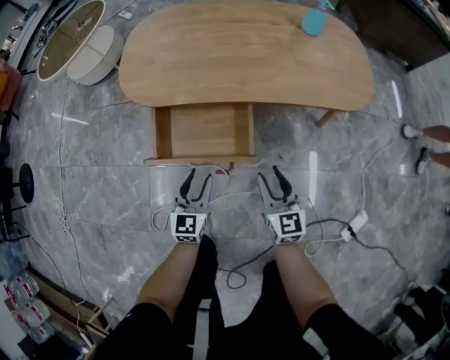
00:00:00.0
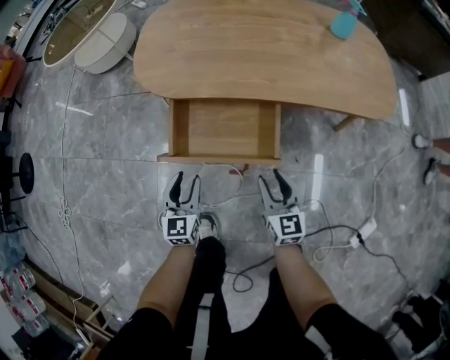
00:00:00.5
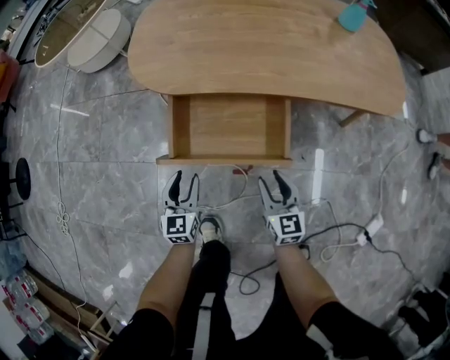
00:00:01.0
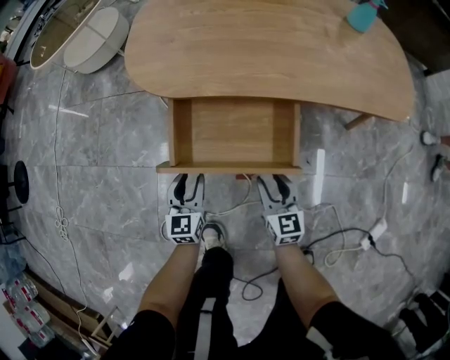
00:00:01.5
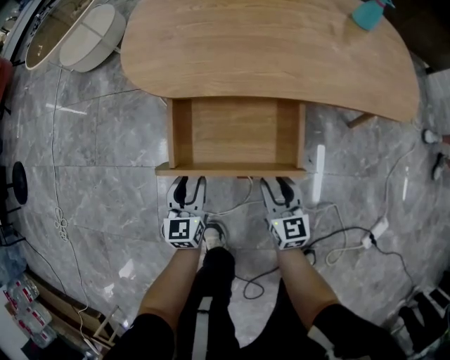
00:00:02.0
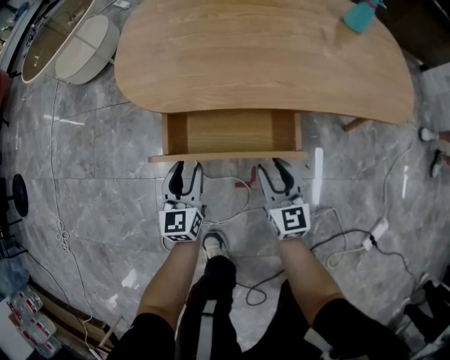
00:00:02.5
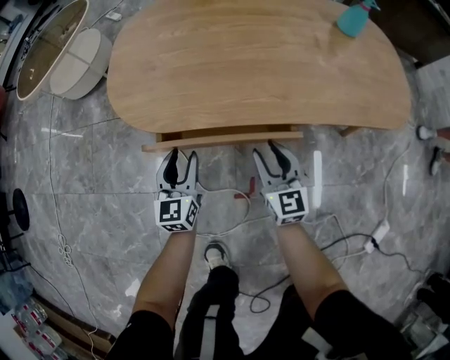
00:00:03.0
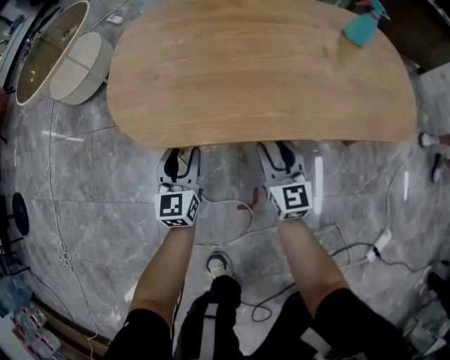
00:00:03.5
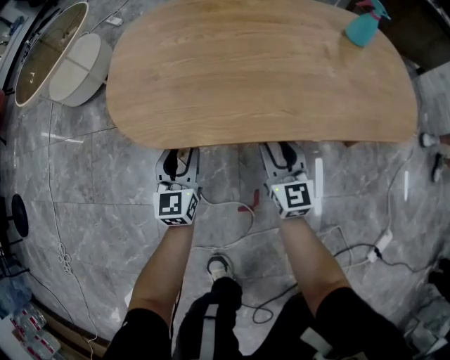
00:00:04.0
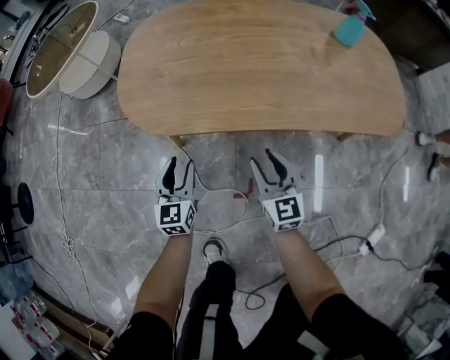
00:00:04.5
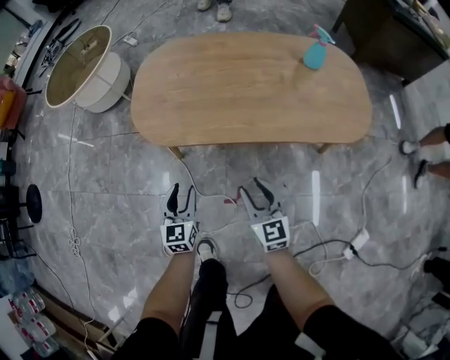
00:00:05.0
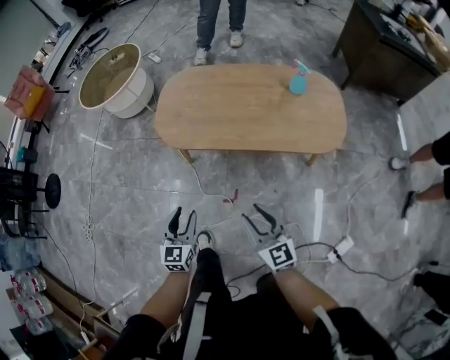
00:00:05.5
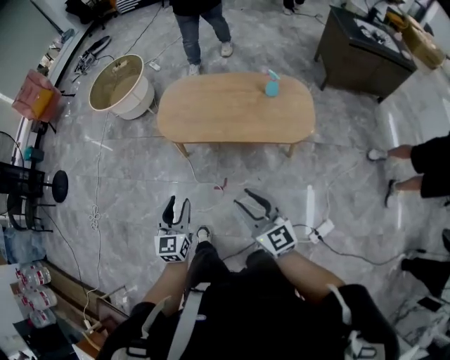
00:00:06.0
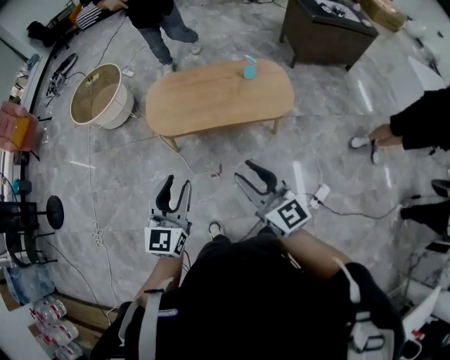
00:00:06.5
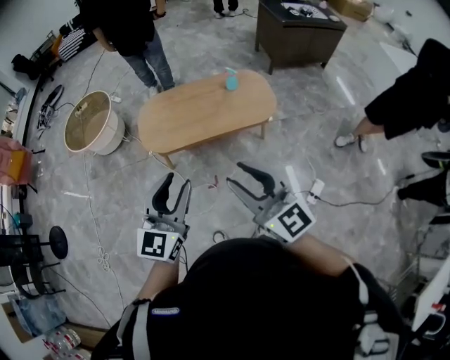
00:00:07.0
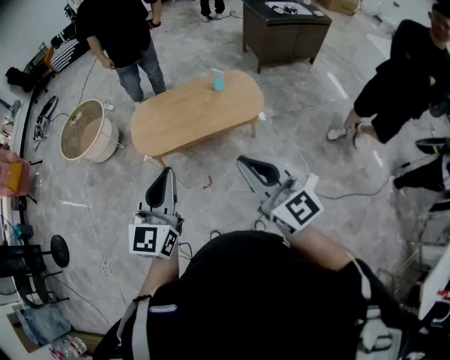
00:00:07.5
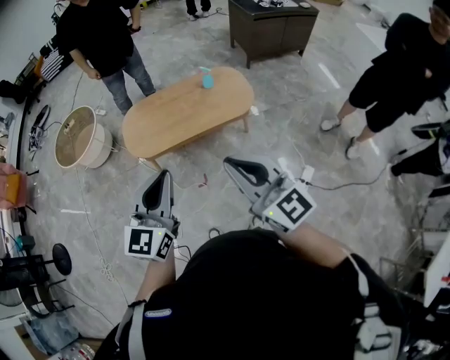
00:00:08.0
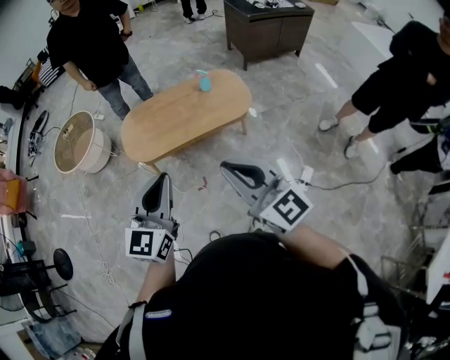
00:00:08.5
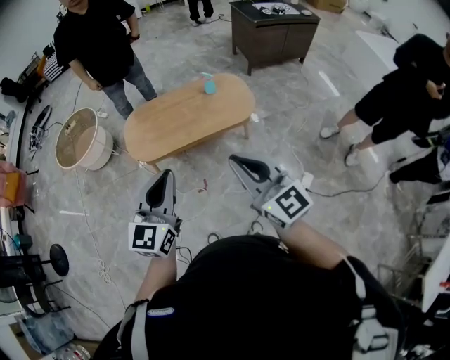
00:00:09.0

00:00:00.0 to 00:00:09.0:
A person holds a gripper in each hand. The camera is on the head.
00:00:00.0 to 00:00:02.0: The right gripper heads downward and to the left, covering roughly 15 cm, while the left gripper shifts about 15 cm to the left and downward.
00:00:02.0 to 00:00:04.5: Both grippers travel together forward and upward, about 15 cm.
00:00:04.5 to 00:00:07.0: The two grippers go some 80 cm upward and backward. The left gripper rotates roughly 30 degrees; the right gripper changes its angle by some 20 degrees.
00:00:07.0 to 00:00:09.0: The right gripper shifts some 5 cm to the right, and closes. The left gripper closes its fingers.

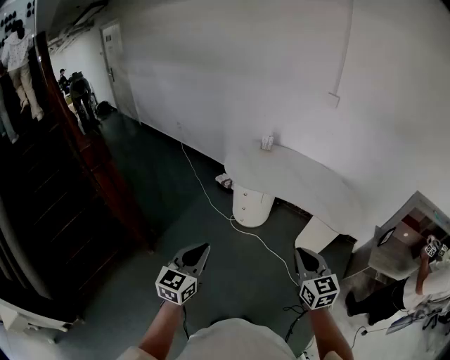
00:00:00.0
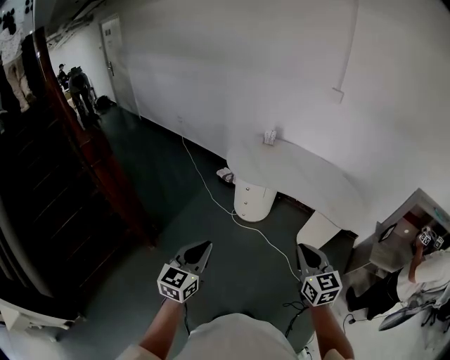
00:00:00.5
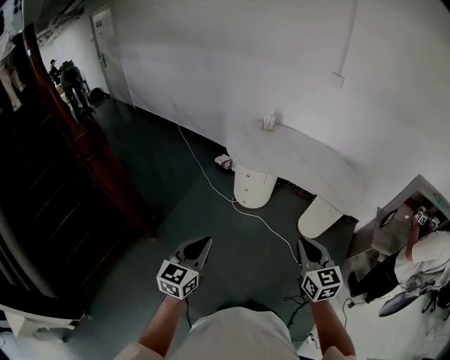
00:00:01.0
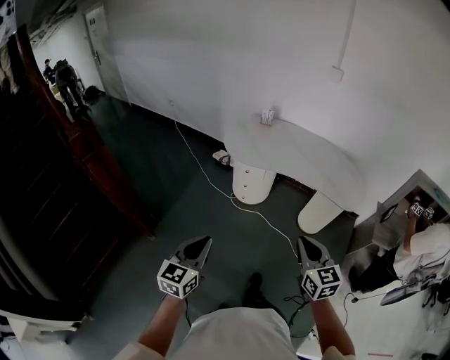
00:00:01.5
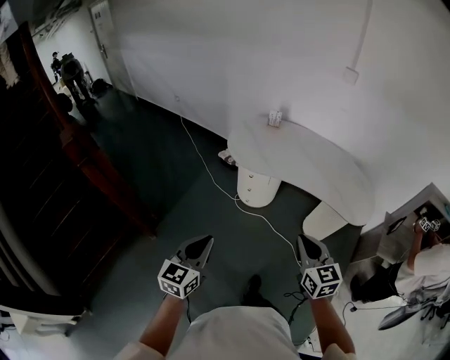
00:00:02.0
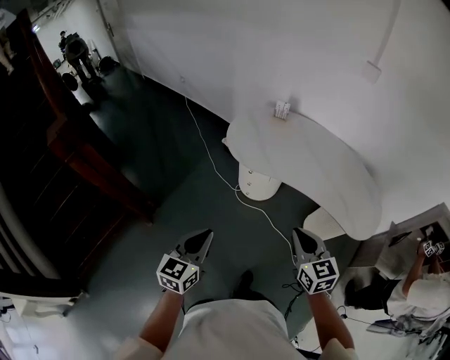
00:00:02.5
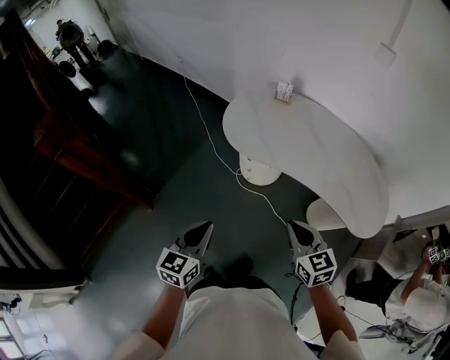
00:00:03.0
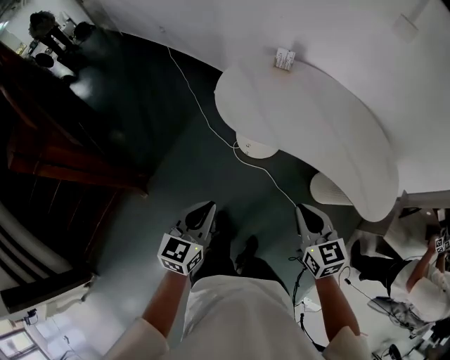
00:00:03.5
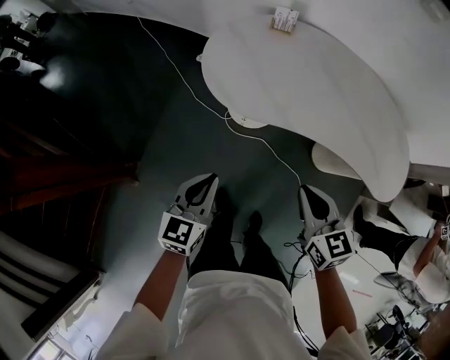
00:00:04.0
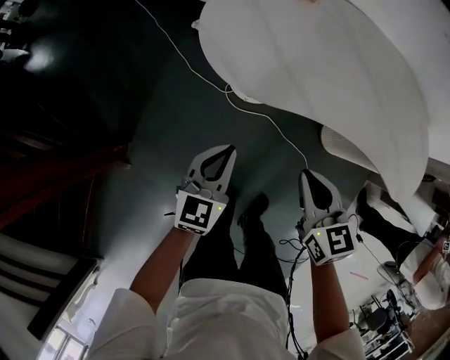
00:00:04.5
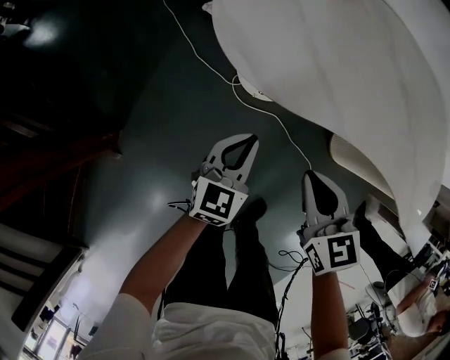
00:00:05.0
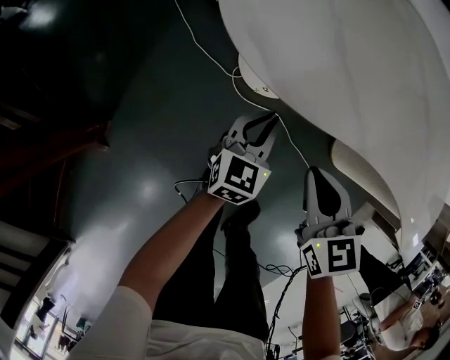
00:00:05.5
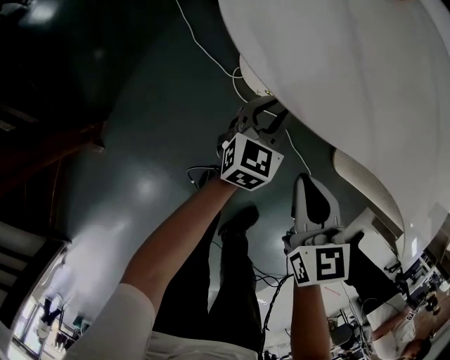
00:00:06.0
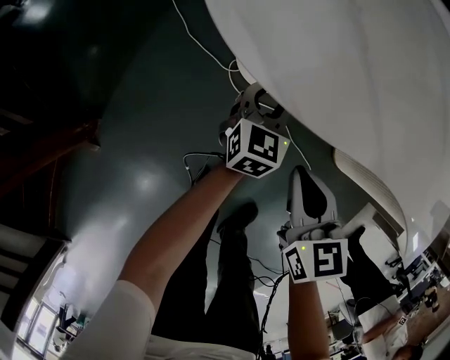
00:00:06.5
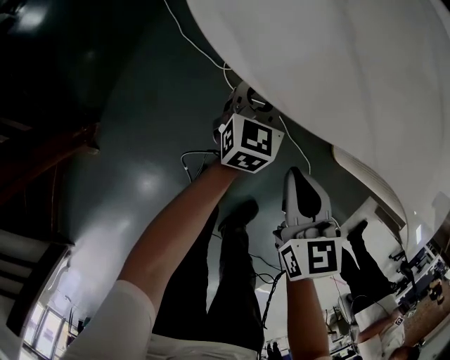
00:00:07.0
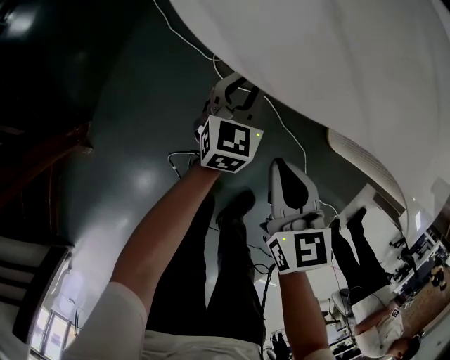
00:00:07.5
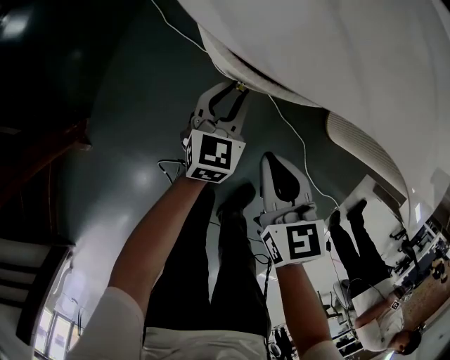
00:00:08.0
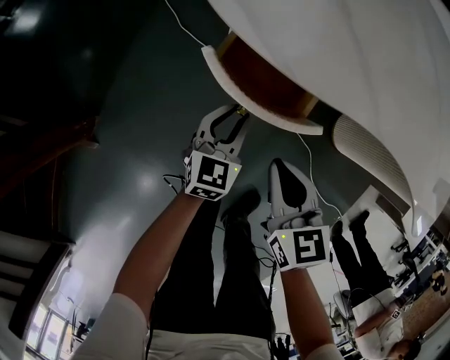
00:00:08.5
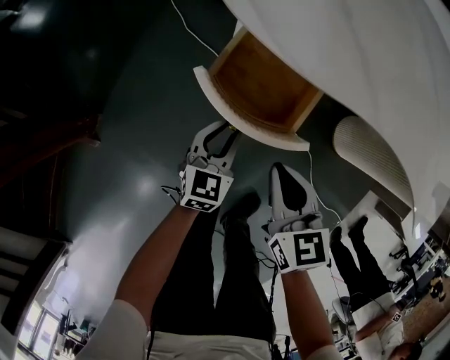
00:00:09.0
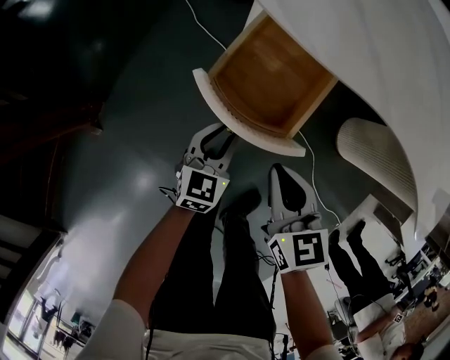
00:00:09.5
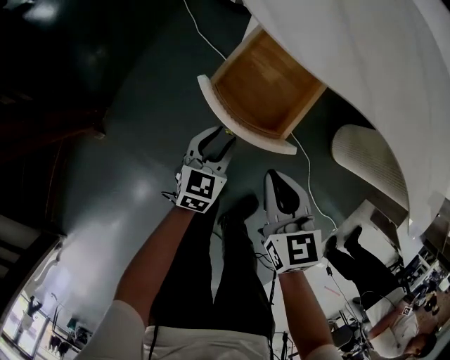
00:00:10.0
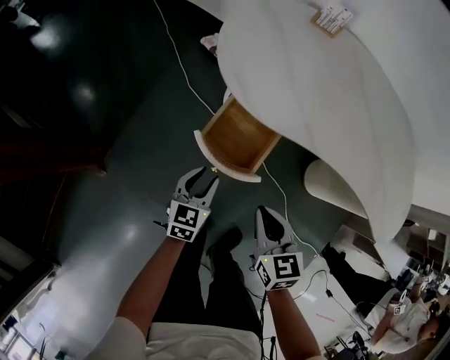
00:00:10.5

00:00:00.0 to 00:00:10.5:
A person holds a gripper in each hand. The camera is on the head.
00:00:00.0 to 00:00:02.0: Both grippers move forward and downward, approximately 10 cm.
00:00:02.0 to 00:00:04.0: Both grippers travel together forward and downward, roughly 40 cm.
00:00:04.0 to 00:00:06.5: The left gripper shifts approximately 50 cm downward and forward, and opens its fingers. The right gripper heads downward, covering roughly 35 cm.
00:00:06.5 to 00:00:08.5: The left gripper heads backward and to the left, covering approximately 15 cm, while the right gripper goes some 5 cm backward.
00:00:08.5 to 00:00:10.5: The right gripper moves upward and backward, roughly 15 cm. The left gripper moves upward, backward and to the left, some 20 cm.

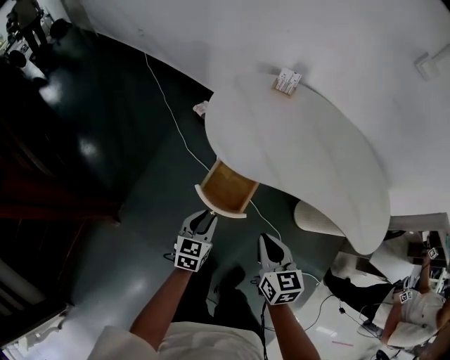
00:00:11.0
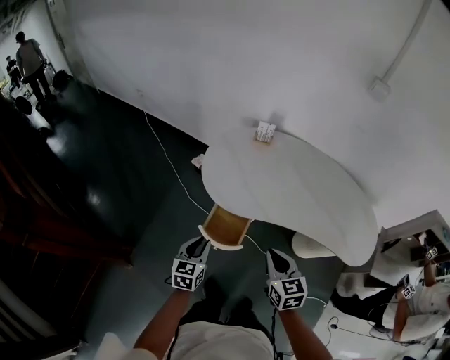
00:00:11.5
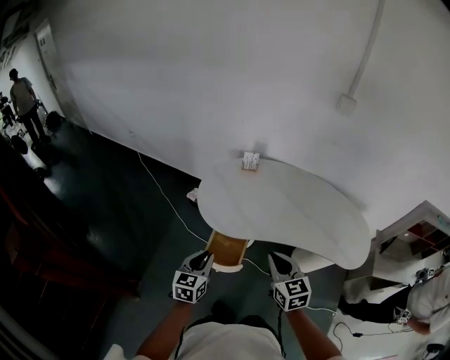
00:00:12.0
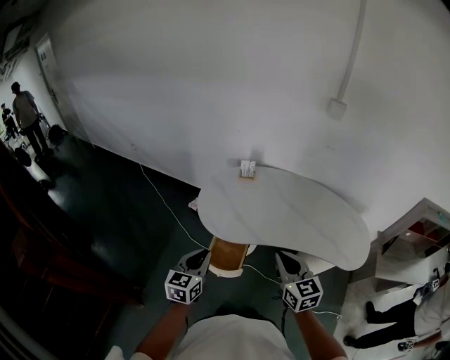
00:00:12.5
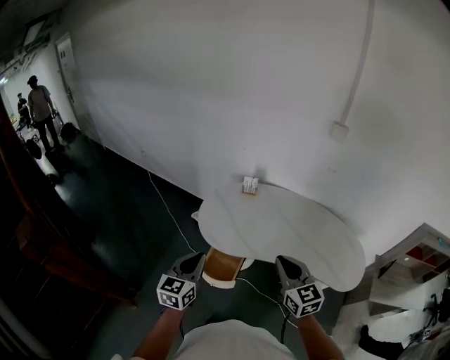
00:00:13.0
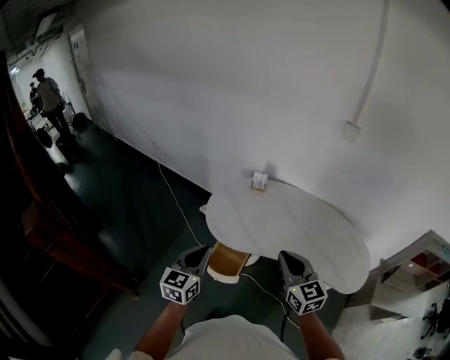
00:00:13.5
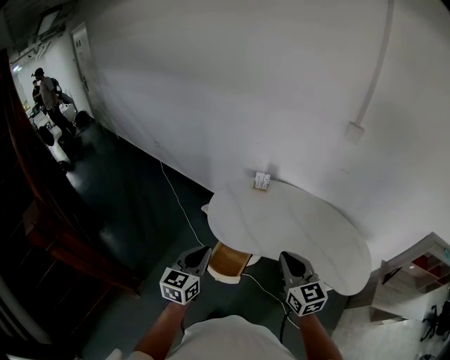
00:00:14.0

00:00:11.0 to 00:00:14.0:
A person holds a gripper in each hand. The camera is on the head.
00:00:11.0 to 00:00:12.5: Both grippers travel together upward, some 30 cm.
00:00:12.5 to 00:00:14.0: The grippers both shift upward by roughly 5 cm.

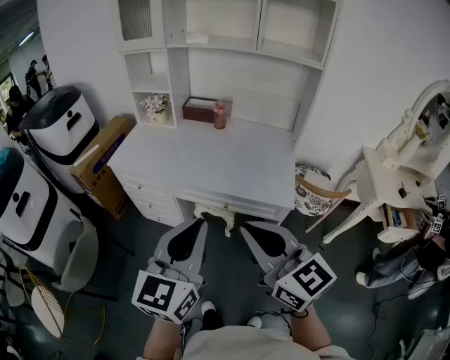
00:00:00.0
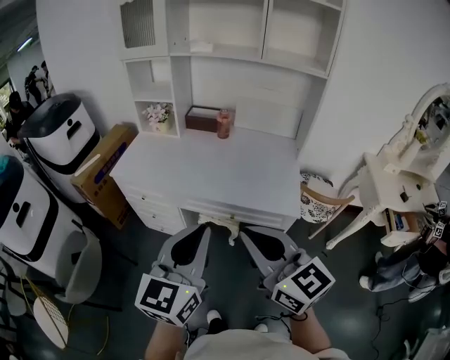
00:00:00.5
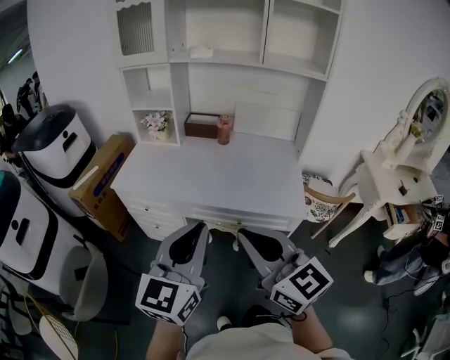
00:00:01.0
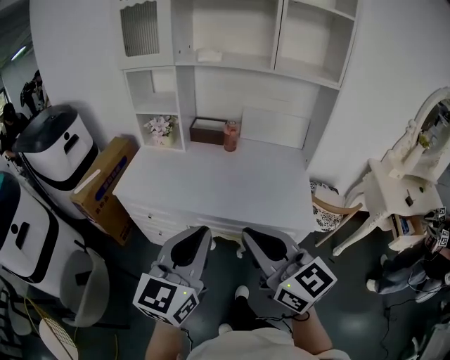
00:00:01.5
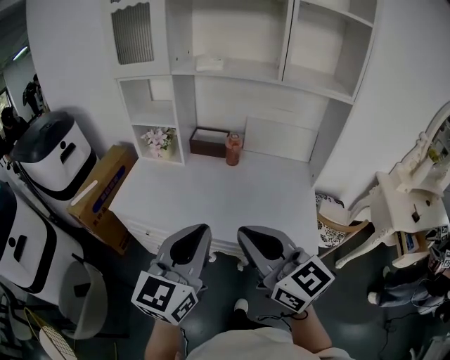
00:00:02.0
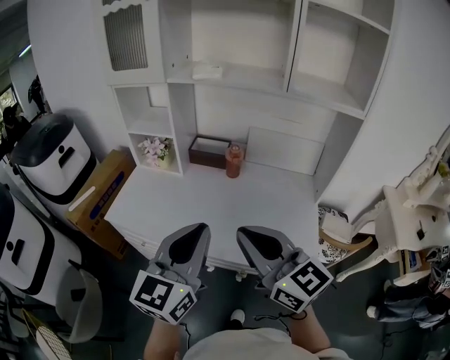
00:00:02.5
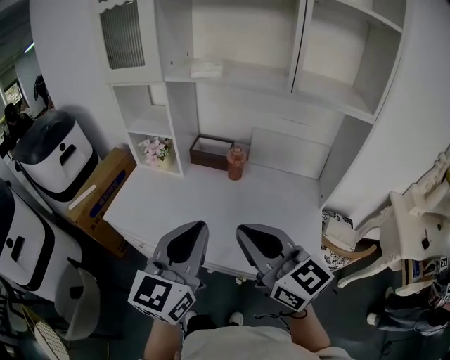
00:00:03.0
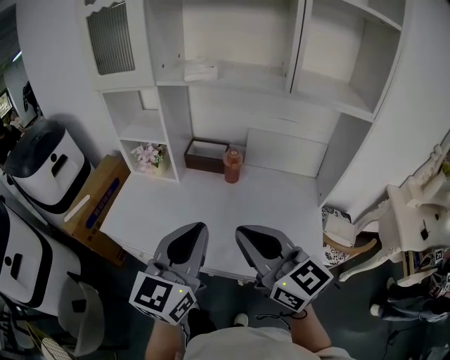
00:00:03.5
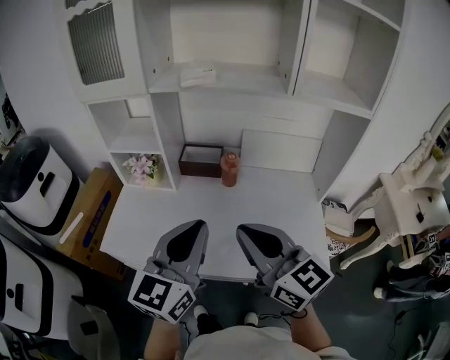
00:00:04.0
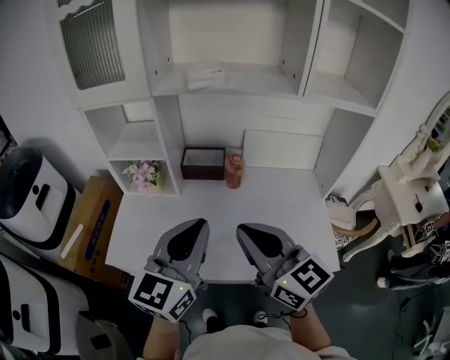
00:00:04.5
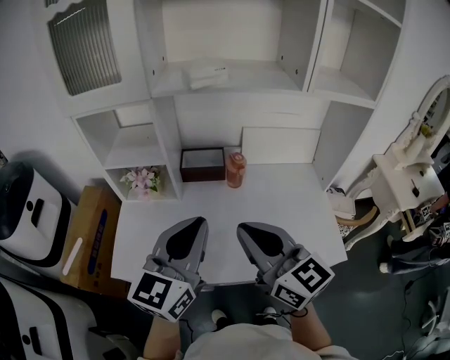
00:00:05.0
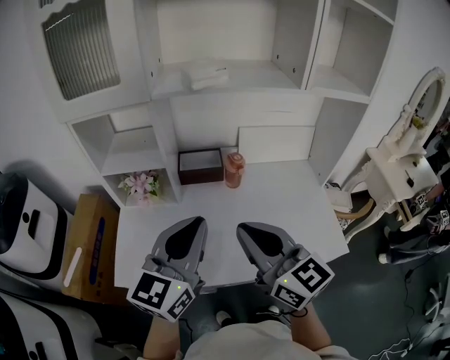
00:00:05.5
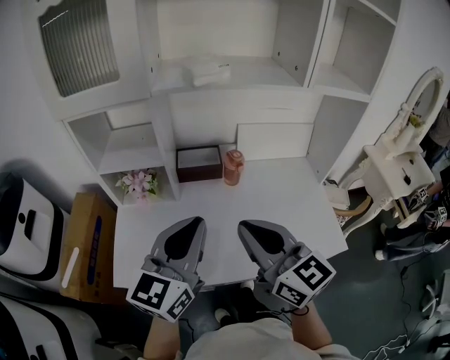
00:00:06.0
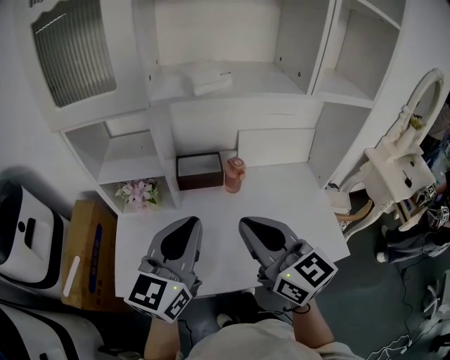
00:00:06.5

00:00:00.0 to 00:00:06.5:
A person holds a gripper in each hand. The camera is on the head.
00:00:00.0 to 00:00:02.0: Both grippers travel together forward, roughly 20 cm.
00:00:02.0 to 00:00:04.5: The two grippers go some 25 cm forward.
00:00:04.5 to 00:00:06.5: Both grippers move to the left and forward, roughly 10 cm.
